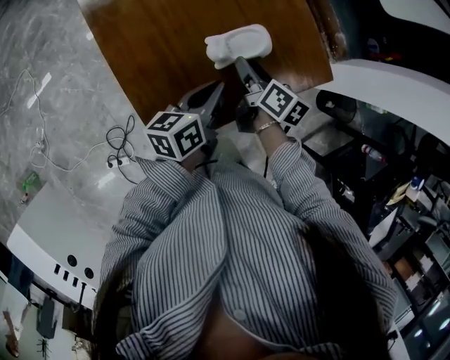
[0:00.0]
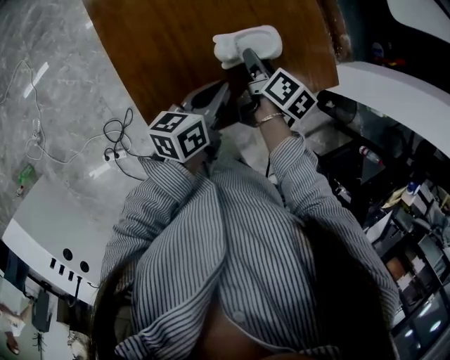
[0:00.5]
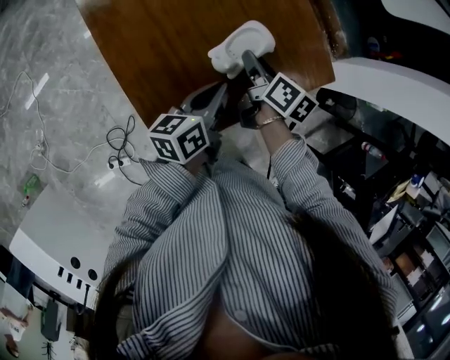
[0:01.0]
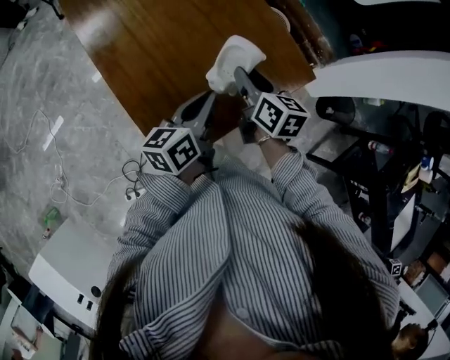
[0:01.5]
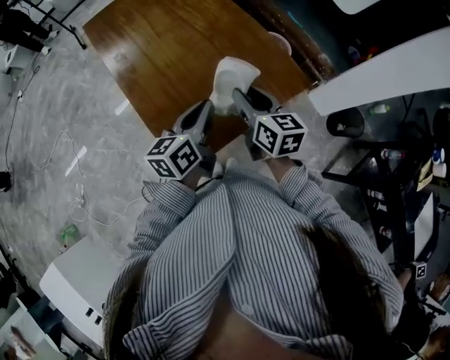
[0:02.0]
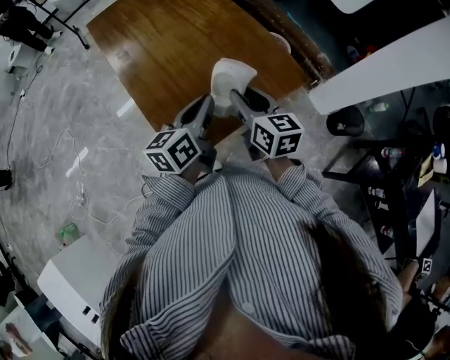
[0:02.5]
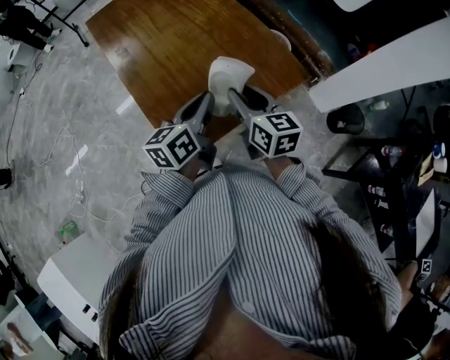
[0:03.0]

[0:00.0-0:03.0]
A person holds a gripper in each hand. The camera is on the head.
0:00.0 to 0:01.5: Both grippers move upward, approximately 10 cm. The right gripper closes up.
0:01.5 to 0:03.0: The left gripper shifts roughly 5 cm upward; the right gripper moves backward and upward, roughly 10 cm.

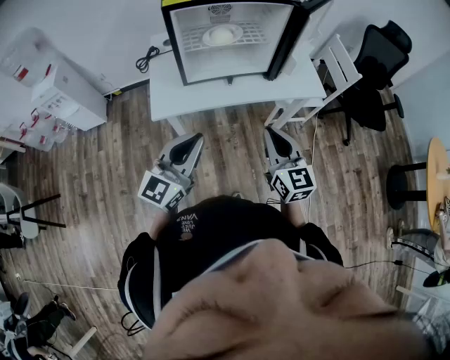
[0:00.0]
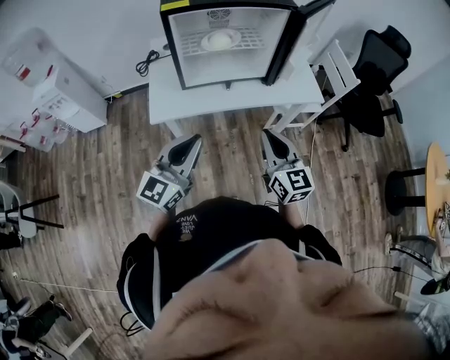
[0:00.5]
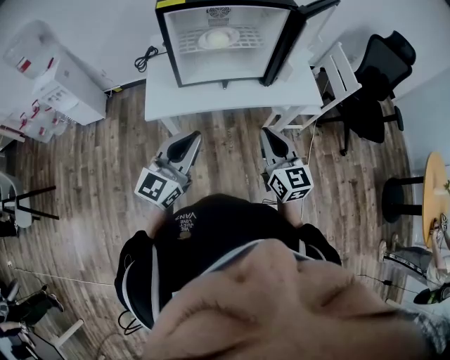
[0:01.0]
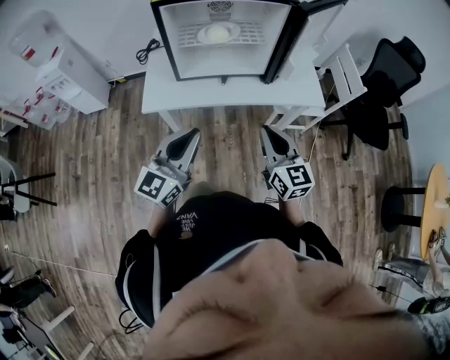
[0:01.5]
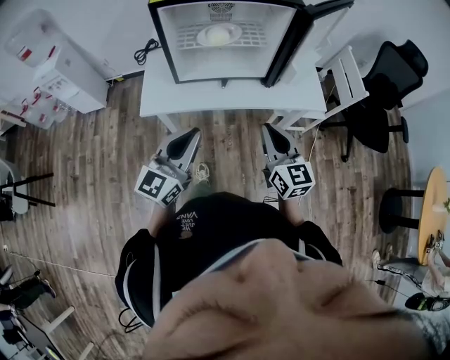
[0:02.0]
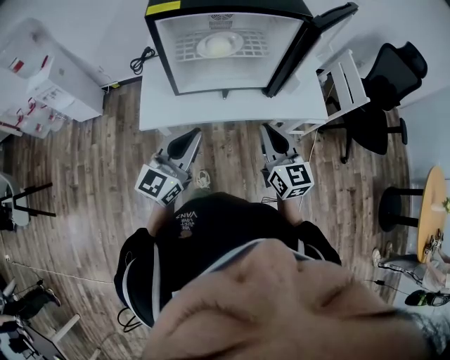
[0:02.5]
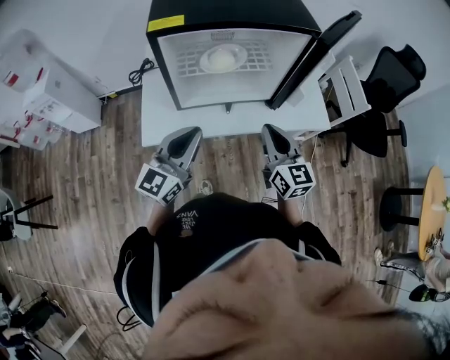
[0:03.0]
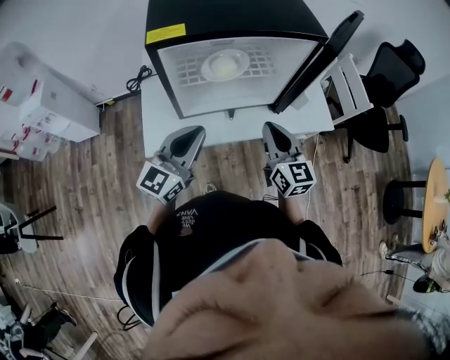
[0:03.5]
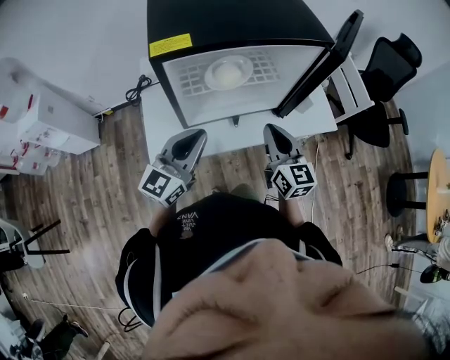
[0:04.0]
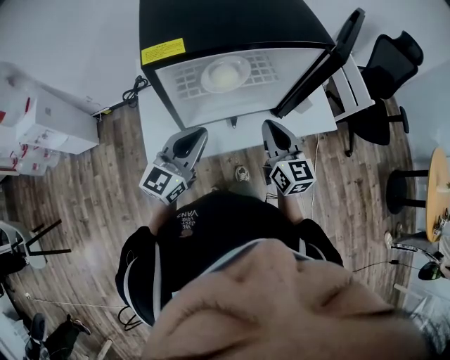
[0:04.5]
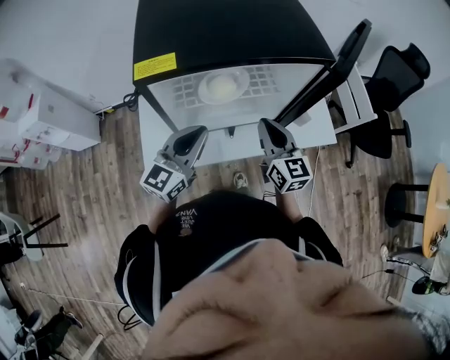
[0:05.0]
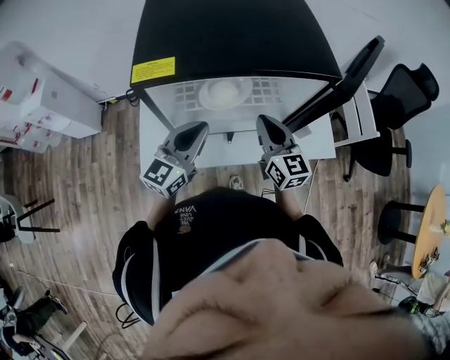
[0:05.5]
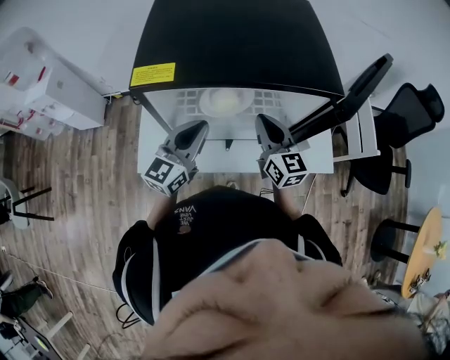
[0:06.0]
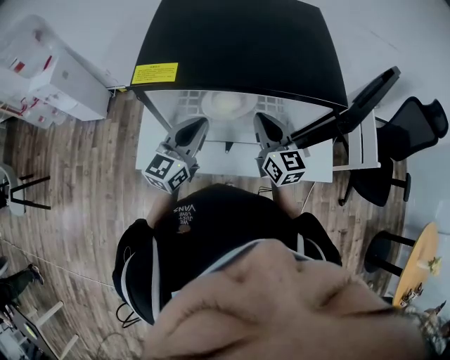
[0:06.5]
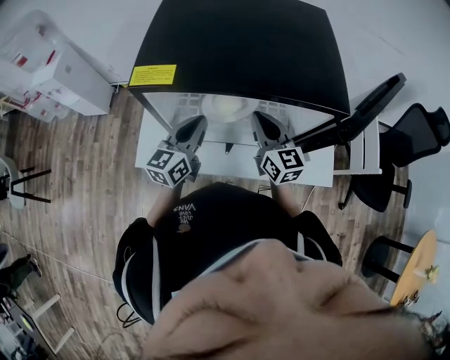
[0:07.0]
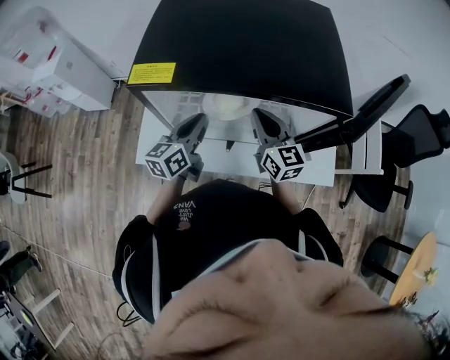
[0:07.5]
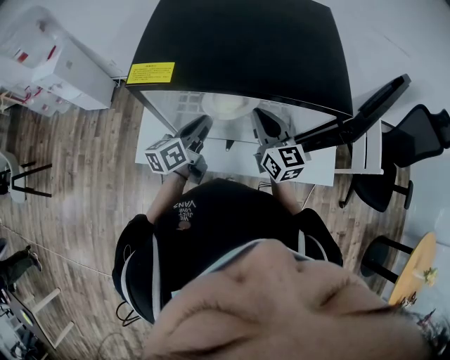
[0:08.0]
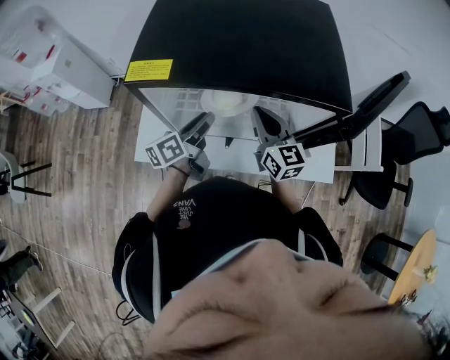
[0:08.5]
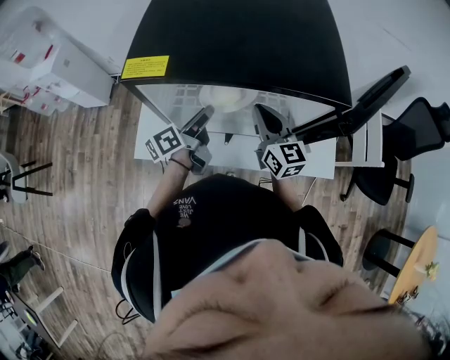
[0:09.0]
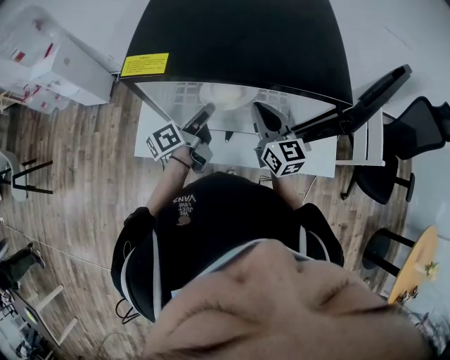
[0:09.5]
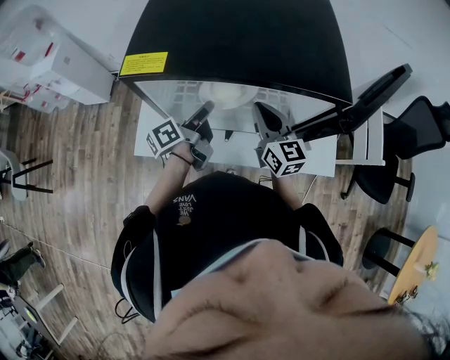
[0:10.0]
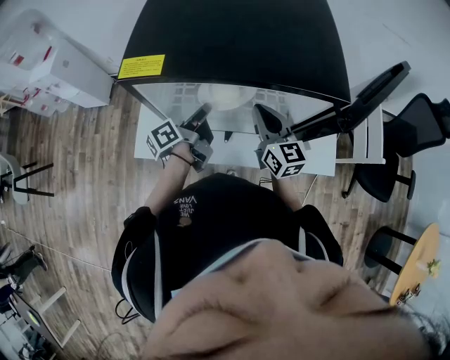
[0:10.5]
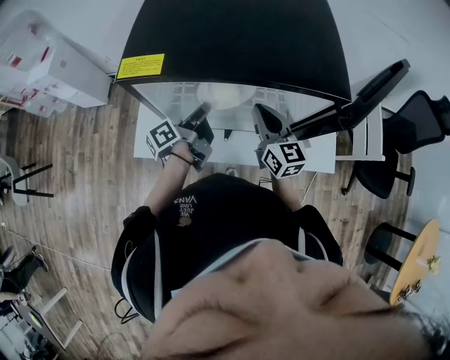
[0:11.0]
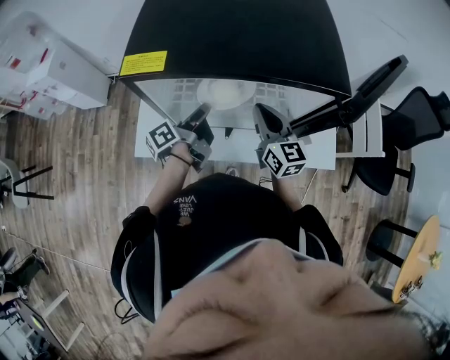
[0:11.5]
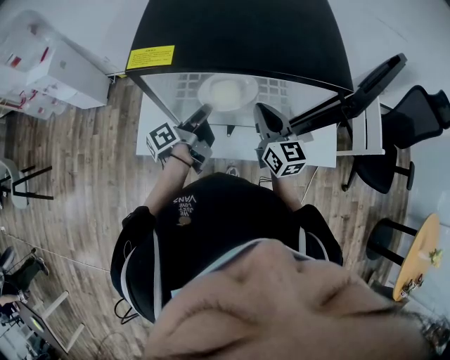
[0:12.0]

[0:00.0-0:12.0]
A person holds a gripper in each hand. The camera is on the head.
0:00.0 to 0:02.0: The right gripper goes approximately 10 cm forward and to the right. The left gripper shifts about 10 cm to the right and forward.
0:02.0 to 0:04.0: The grippers both shift forward and to the left by about 20 cm.
0:04.0 to 0:06.0: The two grippers go about 15 cm forward.
0:06.0 to 0:08.0: The left gripper heads downward, covering about 5 cm, and rolls counterclockwise, seen from behind, by roughly 40 degrees.
0:08.0 to 0:10.0: The left gripper changes its angle by about 30 degrees.
0:10.0 to 0:12.0: There are only small adjustments of the grippers.

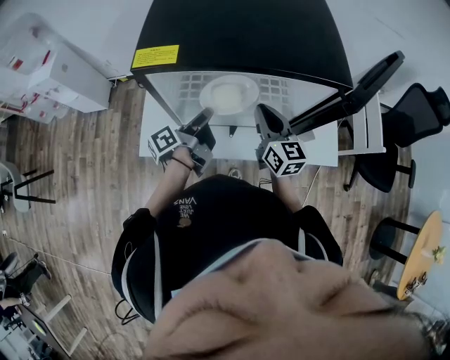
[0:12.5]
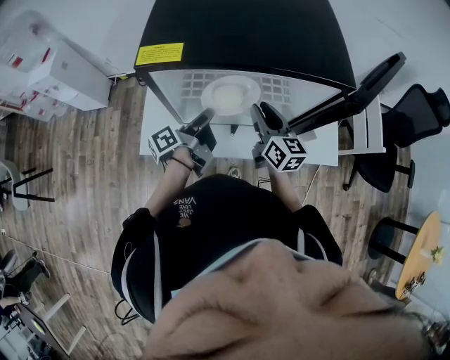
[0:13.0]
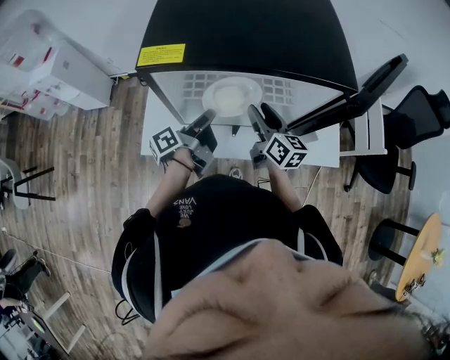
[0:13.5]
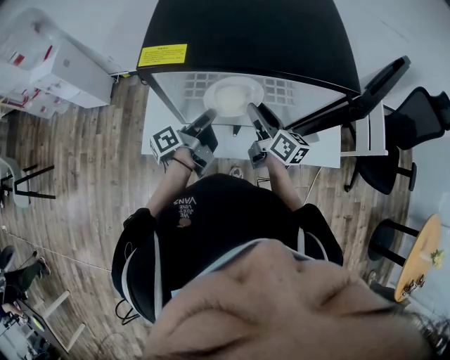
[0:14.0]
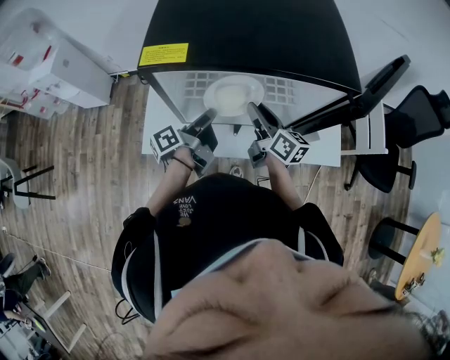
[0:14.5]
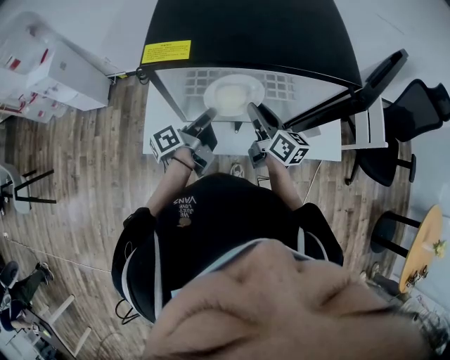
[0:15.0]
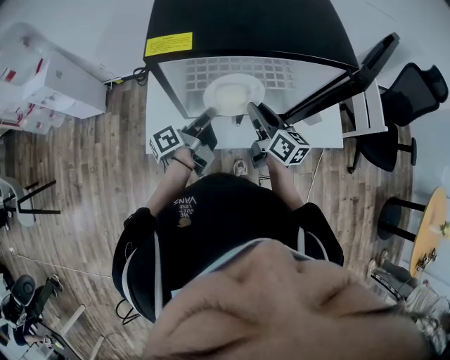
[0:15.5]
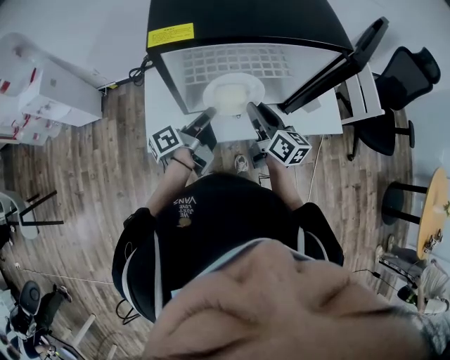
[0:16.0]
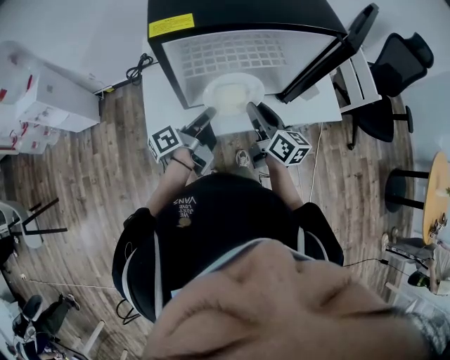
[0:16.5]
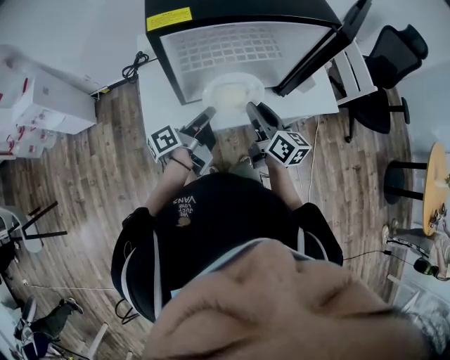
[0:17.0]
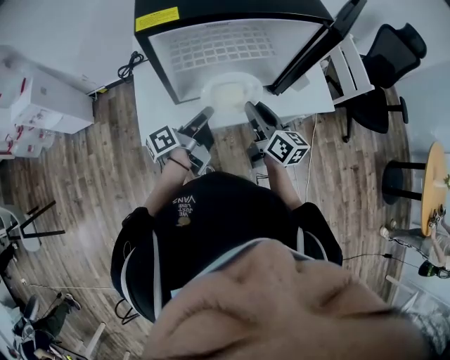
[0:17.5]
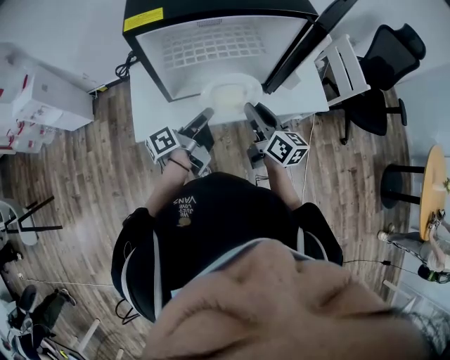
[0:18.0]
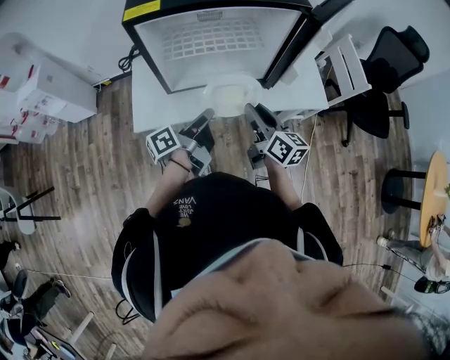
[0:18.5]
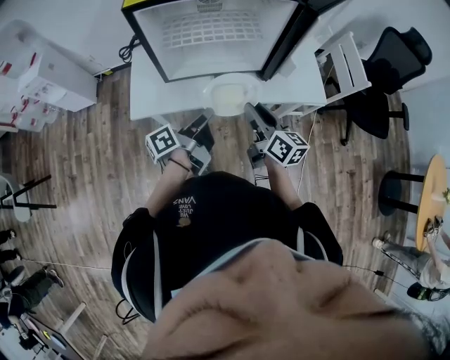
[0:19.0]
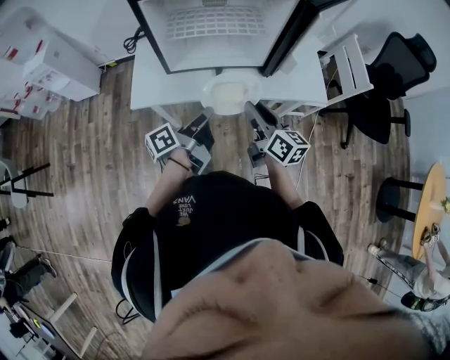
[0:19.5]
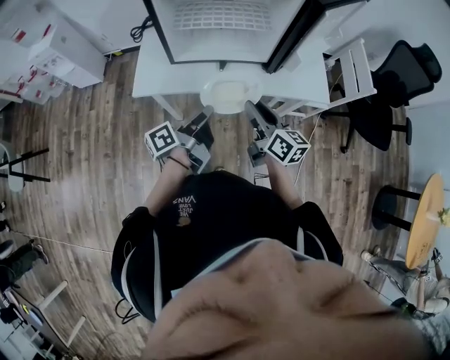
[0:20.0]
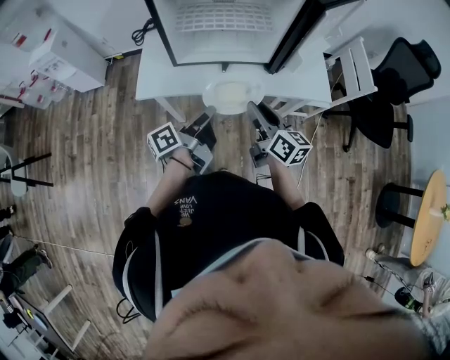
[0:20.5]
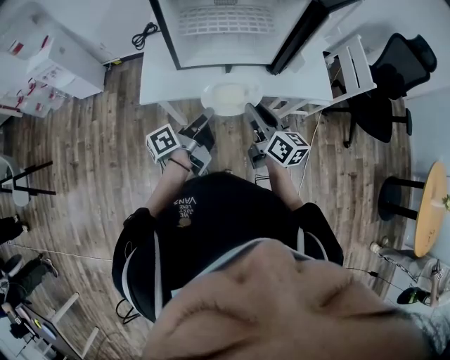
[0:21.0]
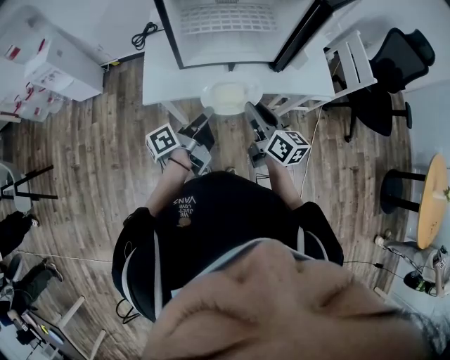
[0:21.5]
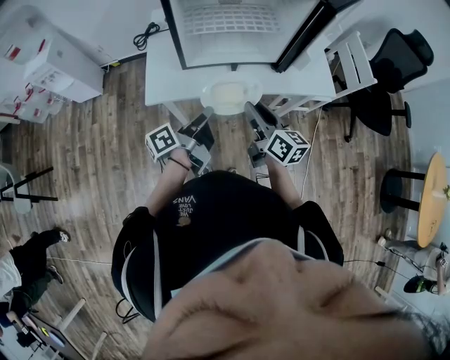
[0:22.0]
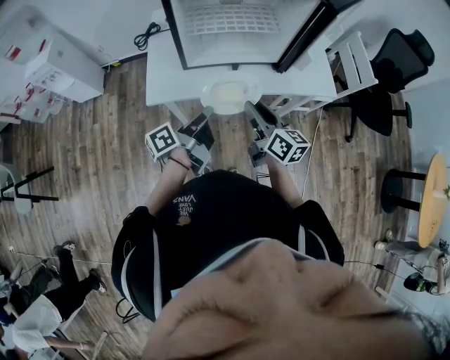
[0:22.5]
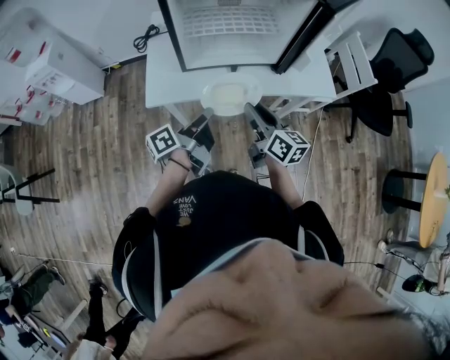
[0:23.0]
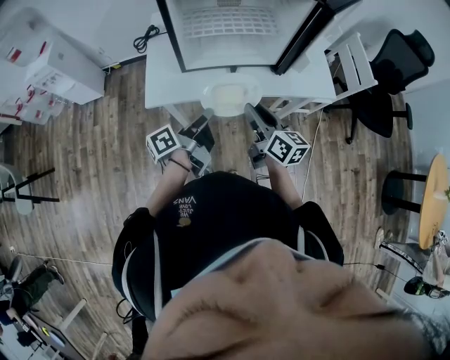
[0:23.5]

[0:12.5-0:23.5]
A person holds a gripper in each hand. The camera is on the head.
0:12.5 to 0:14.5: The right gripper swivels roughly 30 degrees, and opens up.
0:14.5 to 0:16.0: The grippers both shift backward by approximately 5 cm.
0:16.0 to 0:18.0: Both grippers travel together backward and to the right, approximately 10 cm.
0:18.0 to 0:20.0: Both grippers move backward, about 10 cm.
0:20.0 to 0:21.5: Both grippers move to the left, roughly 5 cm.
0:21.5 to 0:23.5: The two grippers keep their place.

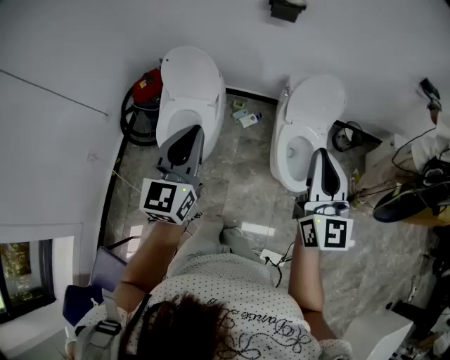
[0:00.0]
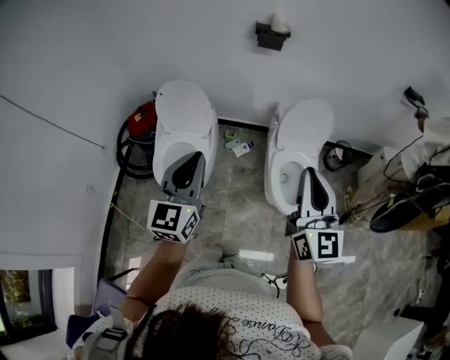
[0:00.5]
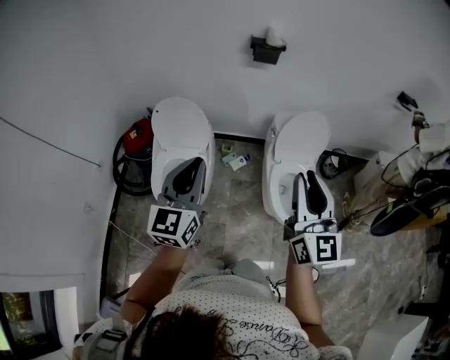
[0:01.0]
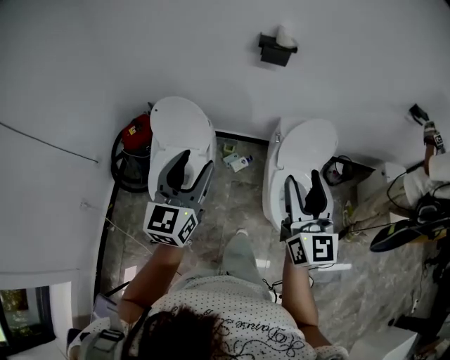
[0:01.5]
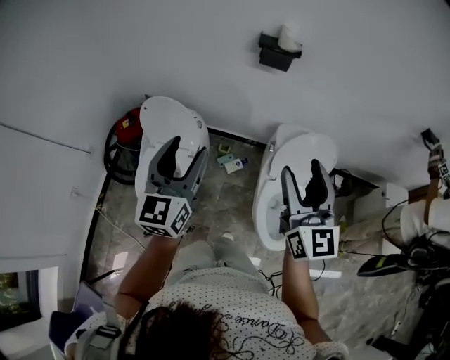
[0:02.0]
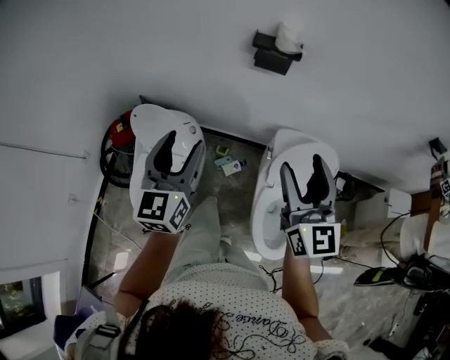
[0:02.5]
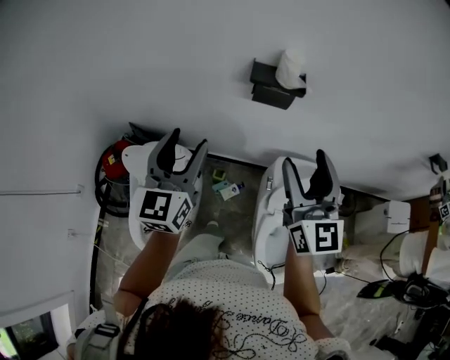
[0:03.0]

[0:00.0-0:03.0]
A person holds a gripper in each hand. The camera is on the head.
0:00.0 to 0:01.5: Both grippers move forward, approximately 15 cm. The left gripper opens up; the right gripper opens.
0:01.5 to 0:03.0: The grippers both shift forward by some 40 cm.
